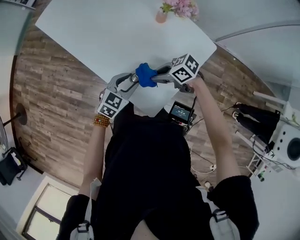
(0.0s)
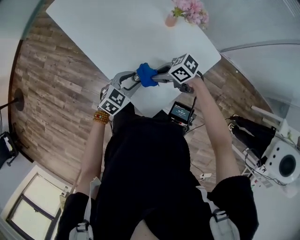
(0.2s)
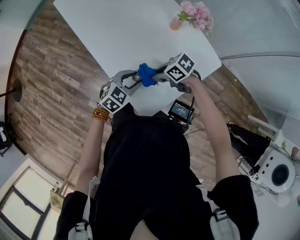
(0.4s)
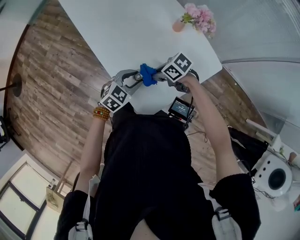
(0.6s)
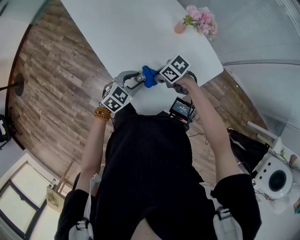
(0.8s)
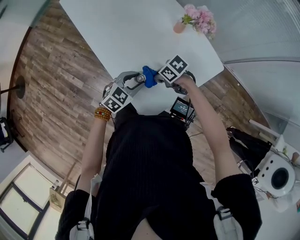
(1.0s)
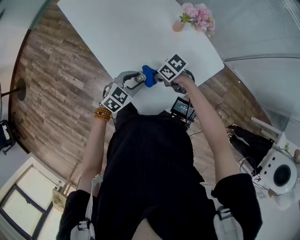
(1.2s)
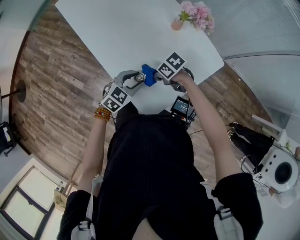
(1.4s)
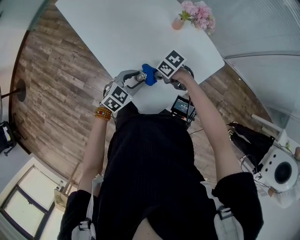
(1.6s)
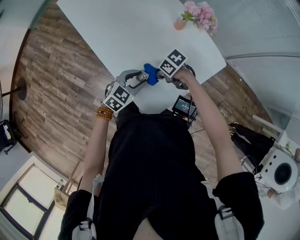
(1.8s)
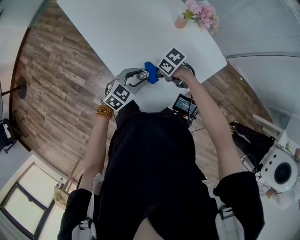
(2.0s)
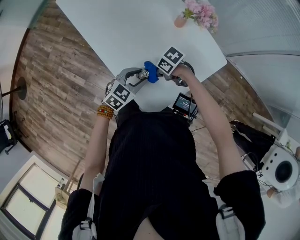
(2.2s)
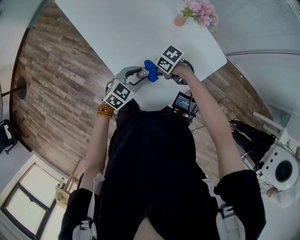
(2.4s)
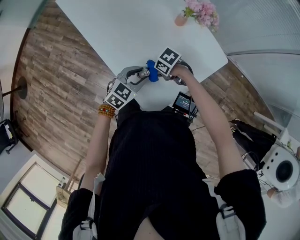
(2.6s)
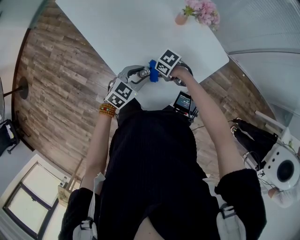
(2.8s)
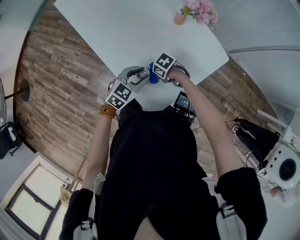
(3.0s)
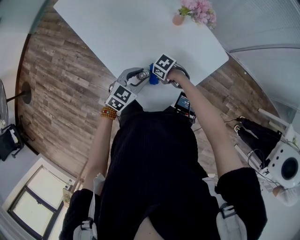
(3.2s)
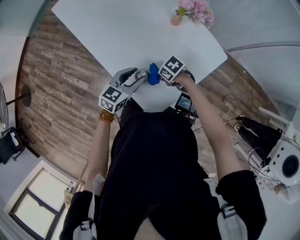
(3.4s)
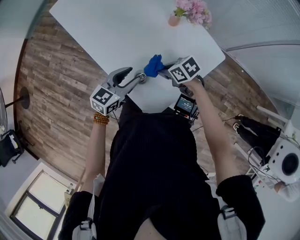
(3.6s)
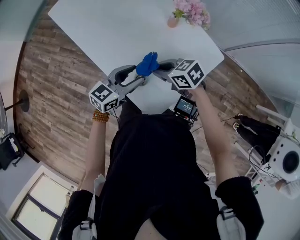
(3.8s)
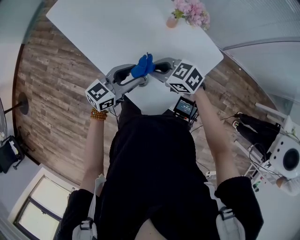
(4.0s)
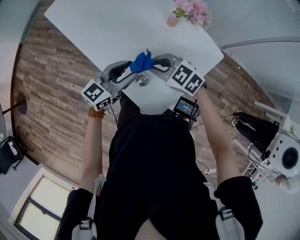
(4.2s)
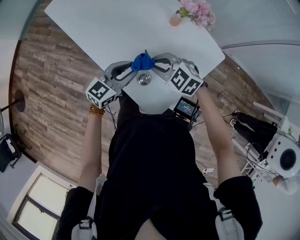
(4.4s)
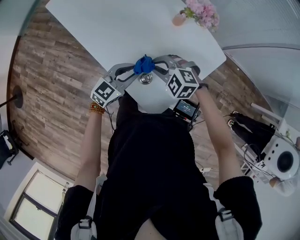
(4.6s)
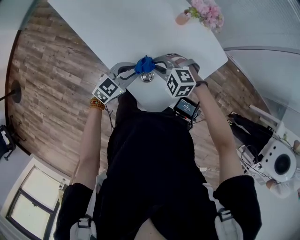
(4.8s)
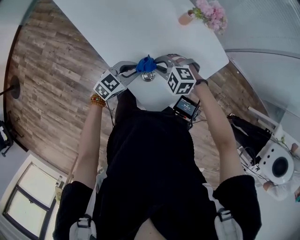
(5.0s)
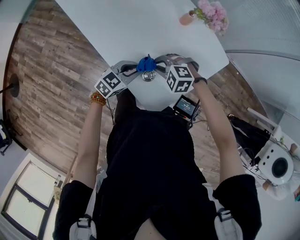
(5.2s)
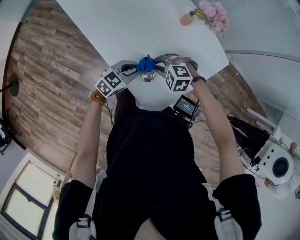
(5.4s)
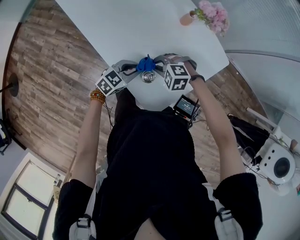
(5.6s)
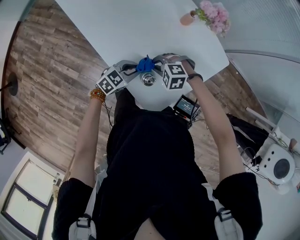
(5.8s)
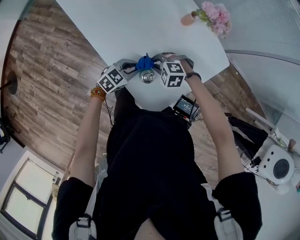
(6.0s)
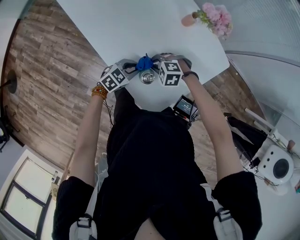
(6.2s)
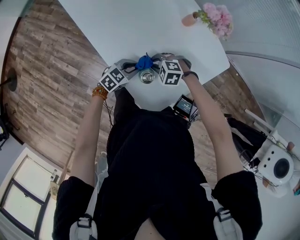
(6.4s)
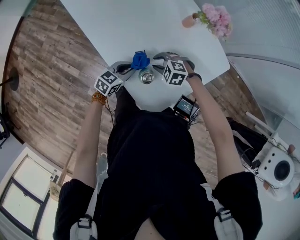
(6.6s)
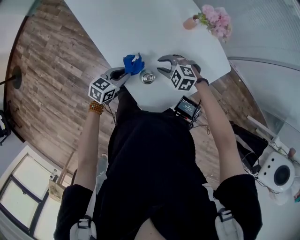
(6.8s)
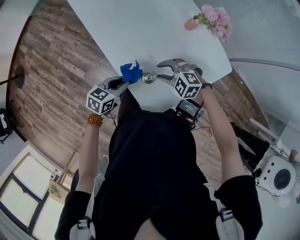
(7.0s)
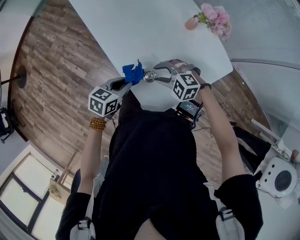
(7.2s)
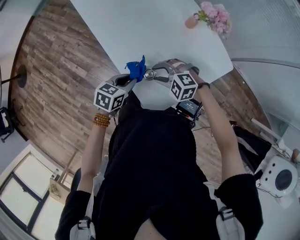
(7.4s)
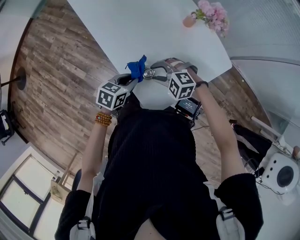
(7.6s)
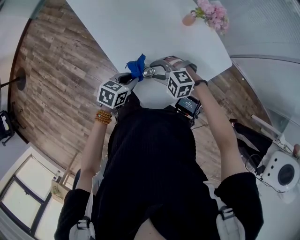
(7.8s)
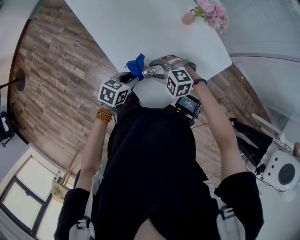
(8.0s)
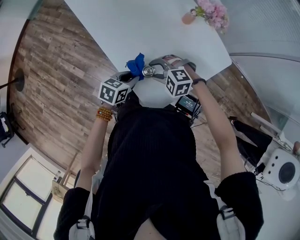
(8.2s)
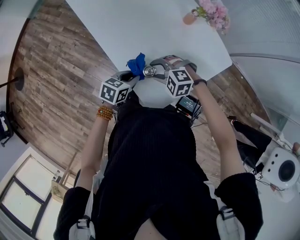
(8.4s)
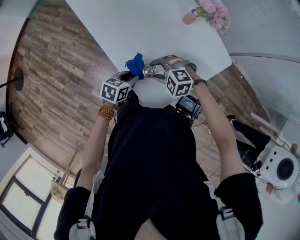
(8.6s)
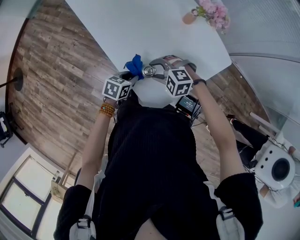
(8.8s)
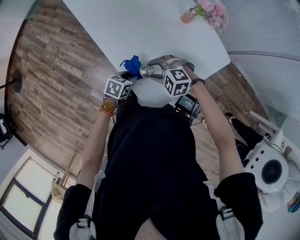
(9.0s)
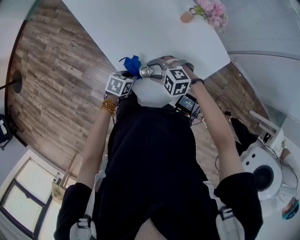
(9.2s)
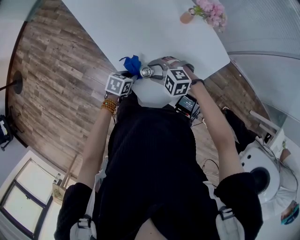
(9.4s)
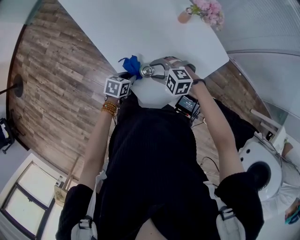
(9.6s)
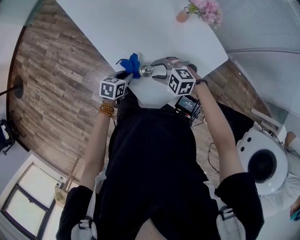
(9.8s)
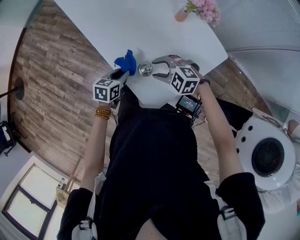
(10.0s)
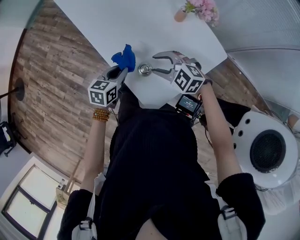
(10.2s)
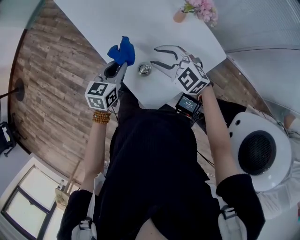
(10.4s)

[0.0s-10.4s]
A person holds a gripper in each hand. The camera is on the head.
0.0s to 1.4s: The right gripper is displaced downward by about 5 cm.
1.4s to 3.0s: The right gripper is displaced downward by some 5 cm.
3.0s to 4.4s: The right gripper shifts roughly 20 cm upward, and swivels about 50 degrees; the left gripper travels upward by some 5 cm, and changes its angle by roughly 20 degrees.
4.4s to 6.0s: Both grippers travel together downward, about 15 cm. The right gripper swivels some 30 degrees; the left gripper rotates roughly 20 degrees.
6.0s to 7.4s: The two grippers go some 5 cm upward. The right gripper opens its fingers. Meanwhile the left gripper turns by approximately 30 degrees.
7.4s to 9.0s: The left gripper goes some 10 cm downward.
9.0s to 10.4s: The grippers both shift upward by roughly 15 cm. The right gripper turns by about 30 degrees. The left gripper changes its angle by some 30 degrees.

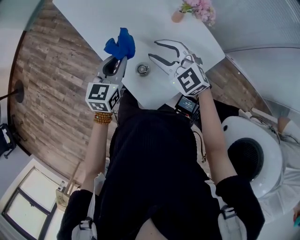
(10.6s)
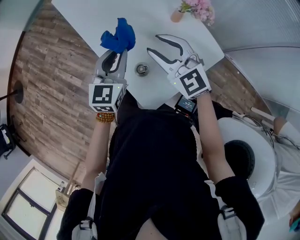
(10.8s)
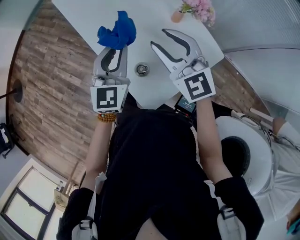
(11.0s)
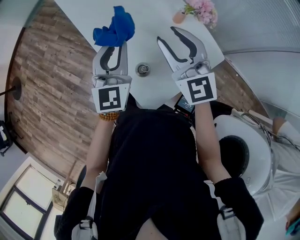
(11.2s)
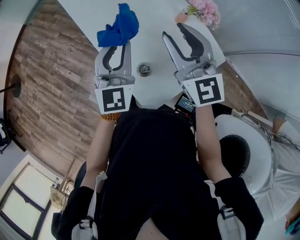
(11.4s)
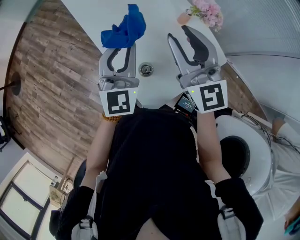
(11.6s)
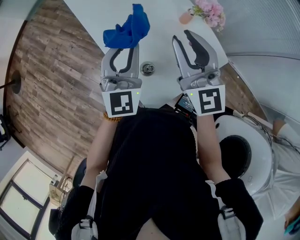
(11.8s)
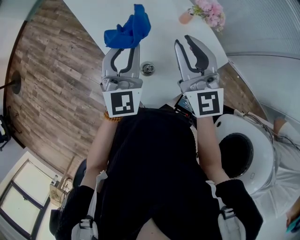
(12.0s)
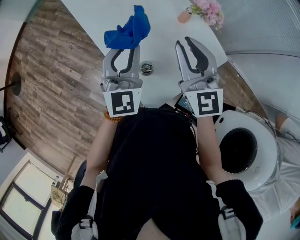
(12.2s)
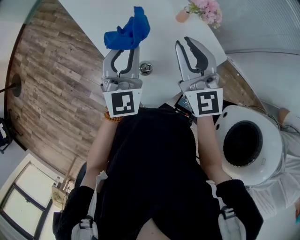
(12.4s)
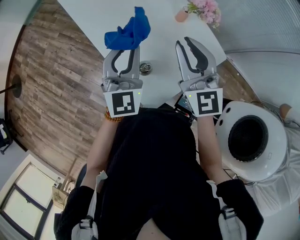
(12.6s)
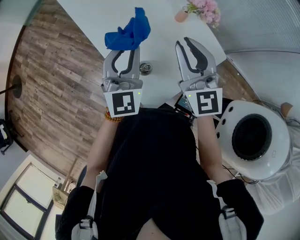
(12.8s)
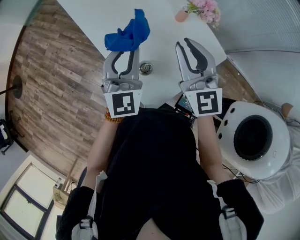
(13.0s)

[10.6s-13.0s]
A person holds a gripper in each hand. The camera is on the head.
10.6s to 11.8s: Both grippers travel together upward, some 10 cm. The left gripper rotates approximately 30 degrees; the right gripper rotates about 30 degrees.
11.8s to 13.0s: The grippers make only small movements.

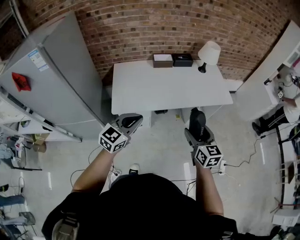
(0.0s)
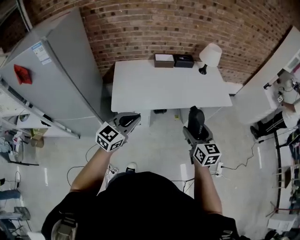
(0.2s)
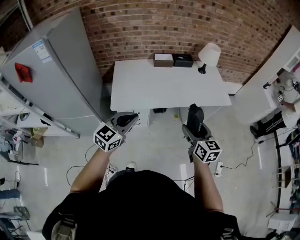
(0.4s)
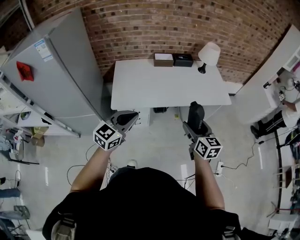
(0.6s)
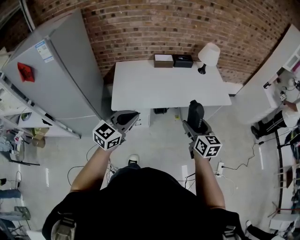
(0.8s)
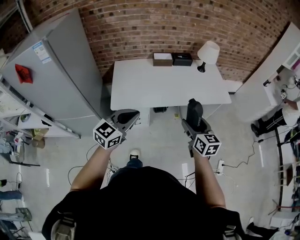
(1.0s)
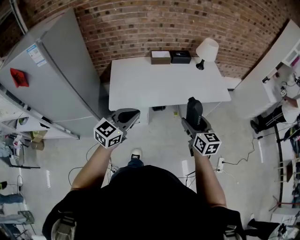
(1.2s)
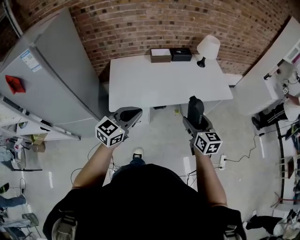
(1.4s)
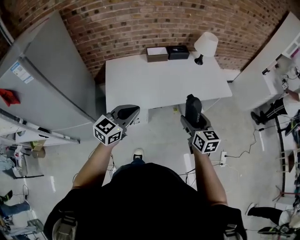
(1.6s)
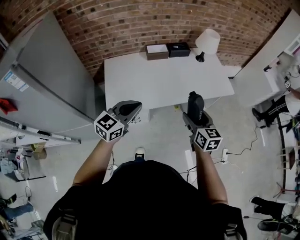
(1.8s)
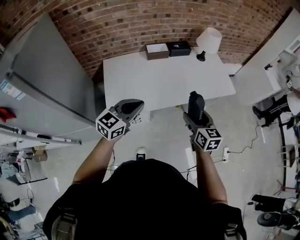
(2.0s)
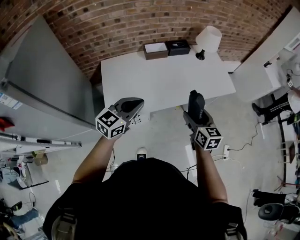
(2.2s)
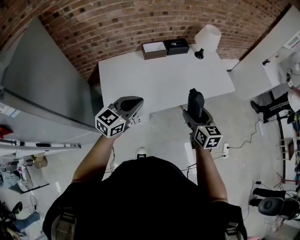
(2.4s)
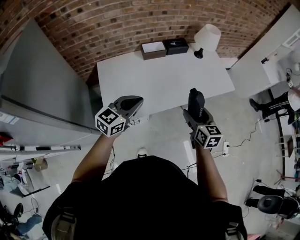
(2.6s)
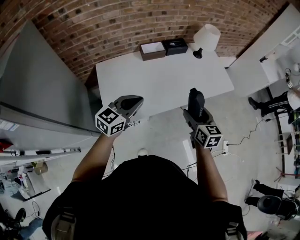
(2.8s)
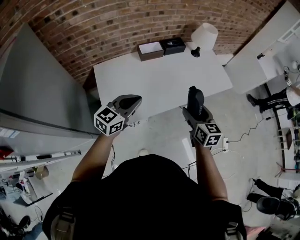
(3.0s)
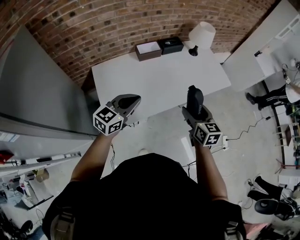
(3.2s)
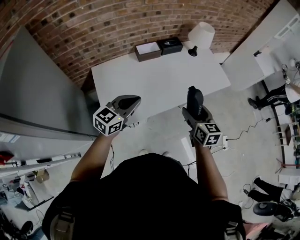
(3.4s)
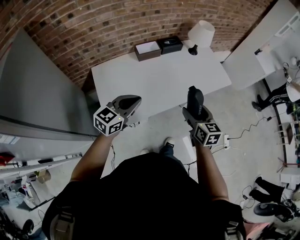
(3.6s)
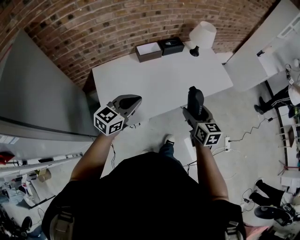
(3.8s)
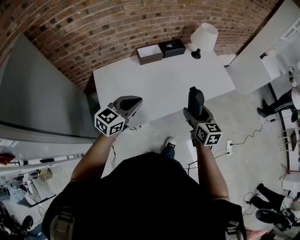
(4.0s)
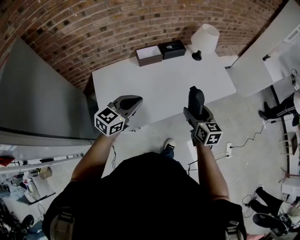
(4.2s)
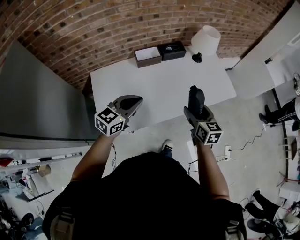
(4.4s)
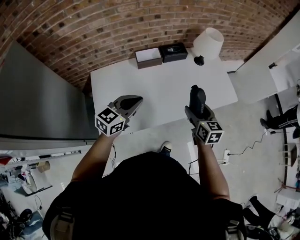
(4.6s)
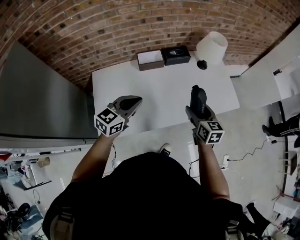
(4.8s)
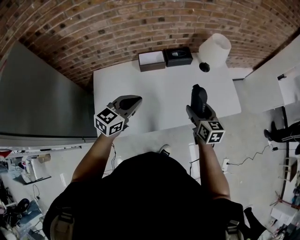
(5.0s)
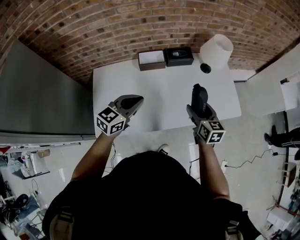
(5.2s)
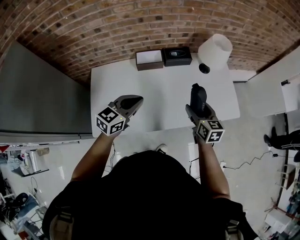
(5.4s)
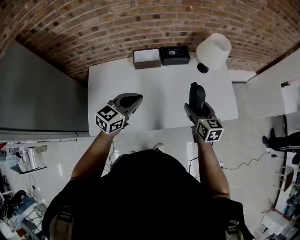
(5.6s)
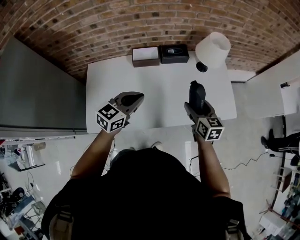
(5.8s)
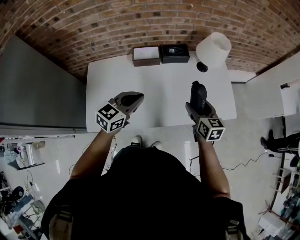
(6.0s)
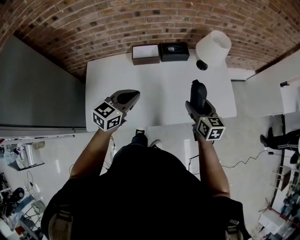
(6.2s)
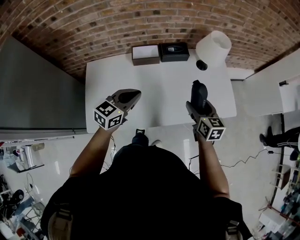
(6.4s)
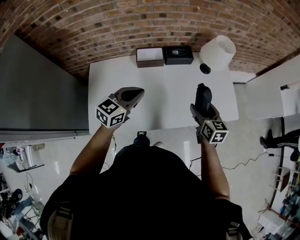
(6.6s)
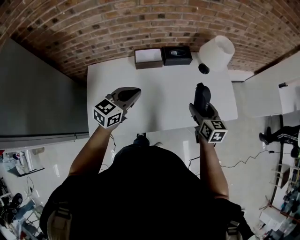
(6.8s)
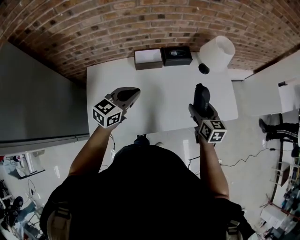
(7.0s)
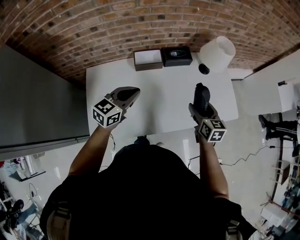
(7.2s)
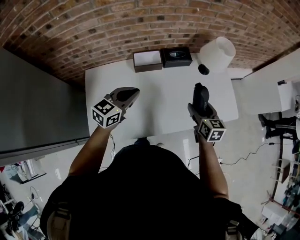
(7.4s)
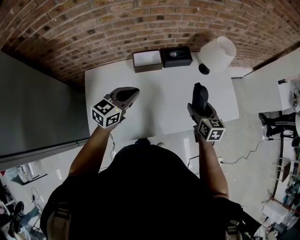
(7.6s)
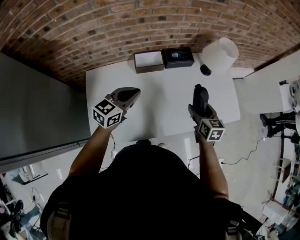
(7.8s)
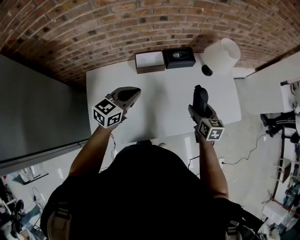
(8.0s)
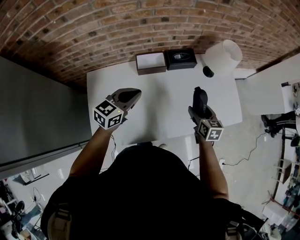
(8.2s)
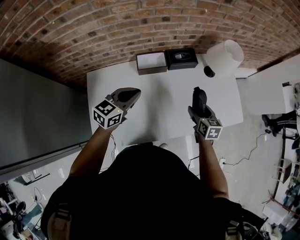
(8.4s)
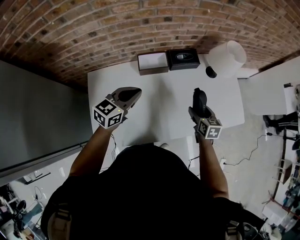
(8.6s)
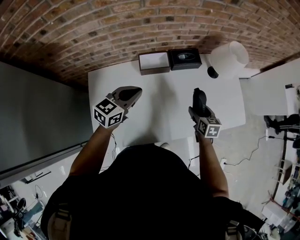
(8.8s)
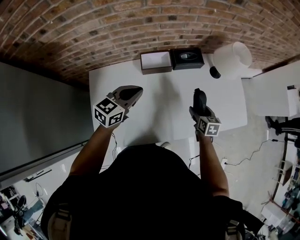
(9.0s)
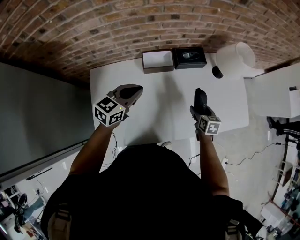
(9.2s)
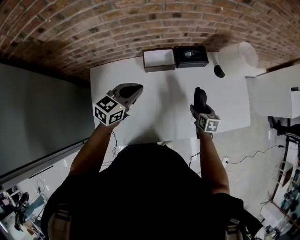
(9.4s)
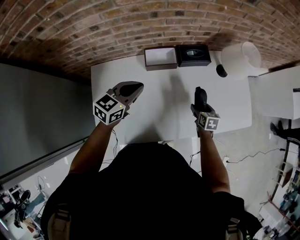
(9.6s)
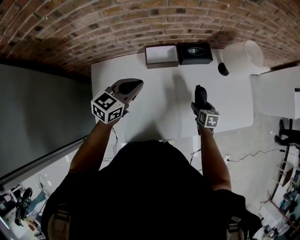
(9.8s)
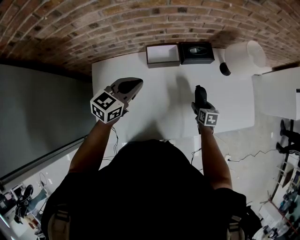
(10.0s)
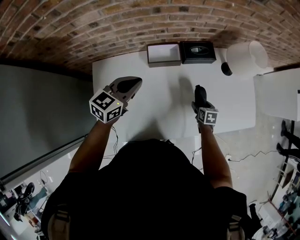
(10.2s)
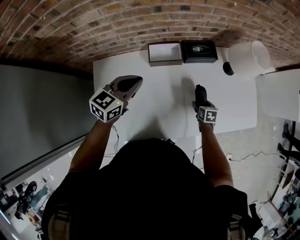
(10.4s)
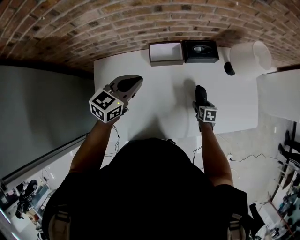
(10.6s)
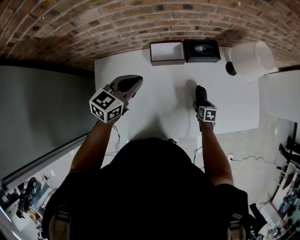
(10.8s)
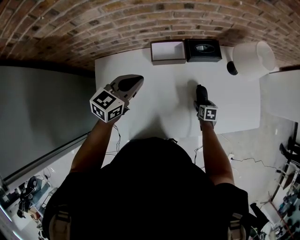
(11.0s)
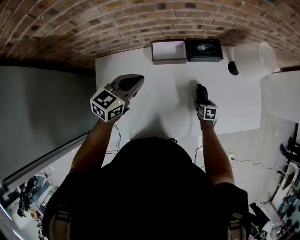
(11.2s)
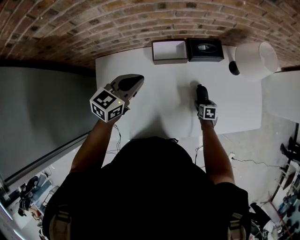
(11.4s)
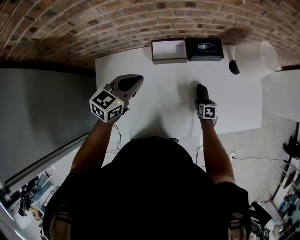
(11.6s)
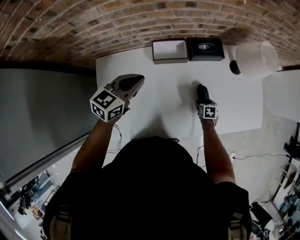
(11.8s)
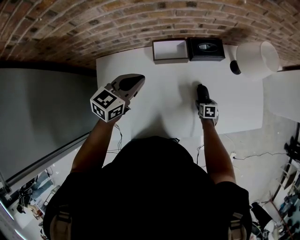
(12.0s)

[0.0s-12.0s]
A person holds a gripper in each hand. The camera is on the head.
0.0s to 1.6s: Both grippers move forward, approximately 5 cm.
1.6s to 3.0s: Both grippers move forward and to the left, about 15 cm.
3.0s to 4.4s: The grippers both shift forward by approximately 10 cm.
4.4s to 6.0s: Both grippers travel together forward and to the right, about 15 cm.
6.0s to 7.6s: The left gripper travels to the left and forward by approximately 10 cm. The right gripper moves to the left, roughly 5 cm.
7.6s to 9.0s: The left gripper moves forward, roughly 5 cm; the right gripper travels downward by about 15 cm.
9.0s to 10.4s: The right gripper shifts approximately 15 cm downward. Meanwhile the left gripper shifts by some 5 cm.
10.4s to 12.0s: The right gripper is displaced downward by some 5 cm.
